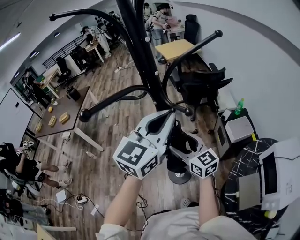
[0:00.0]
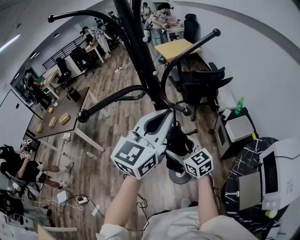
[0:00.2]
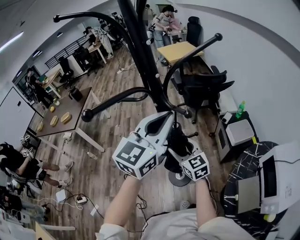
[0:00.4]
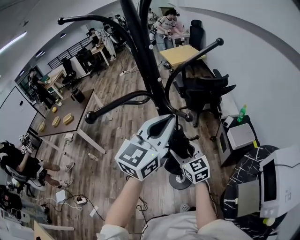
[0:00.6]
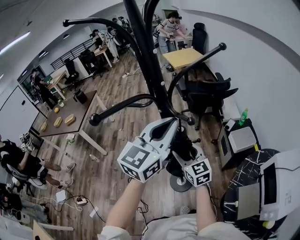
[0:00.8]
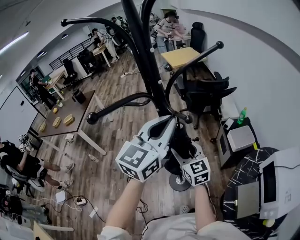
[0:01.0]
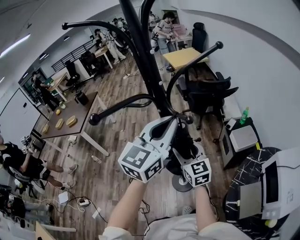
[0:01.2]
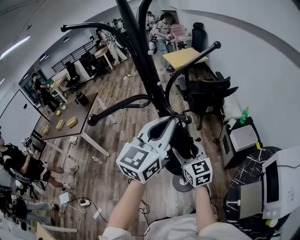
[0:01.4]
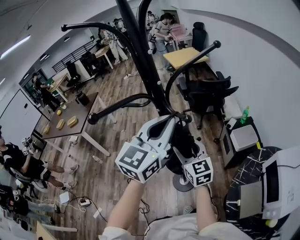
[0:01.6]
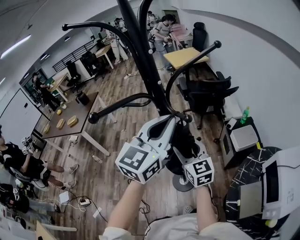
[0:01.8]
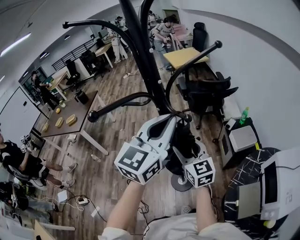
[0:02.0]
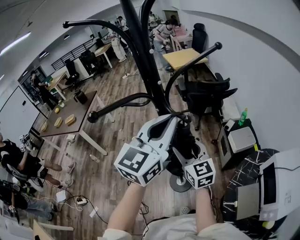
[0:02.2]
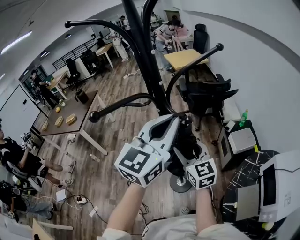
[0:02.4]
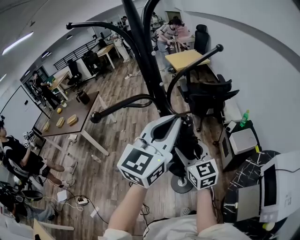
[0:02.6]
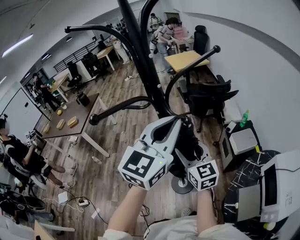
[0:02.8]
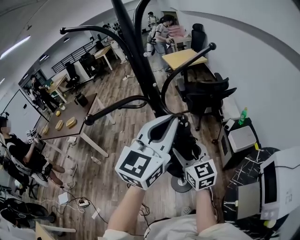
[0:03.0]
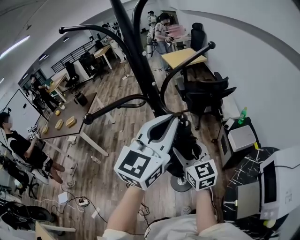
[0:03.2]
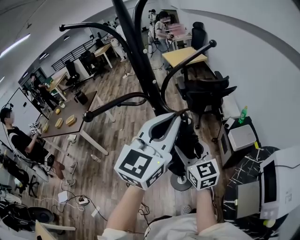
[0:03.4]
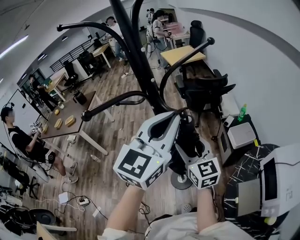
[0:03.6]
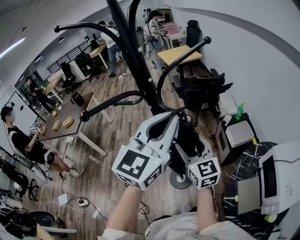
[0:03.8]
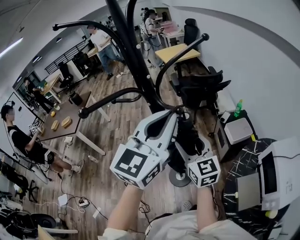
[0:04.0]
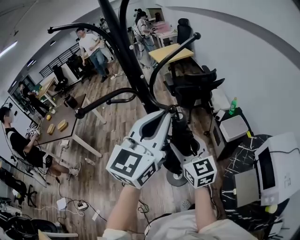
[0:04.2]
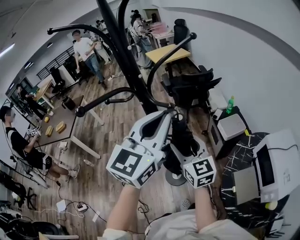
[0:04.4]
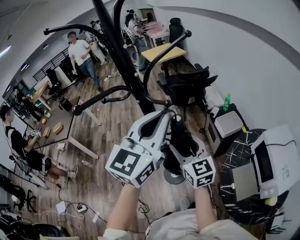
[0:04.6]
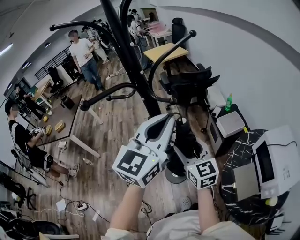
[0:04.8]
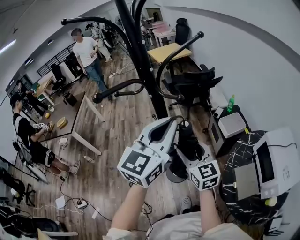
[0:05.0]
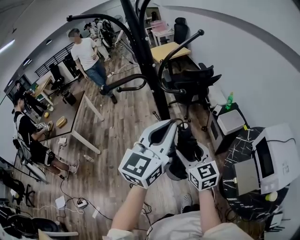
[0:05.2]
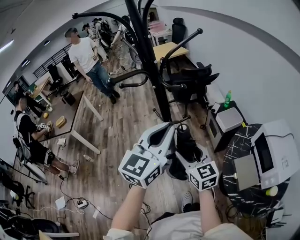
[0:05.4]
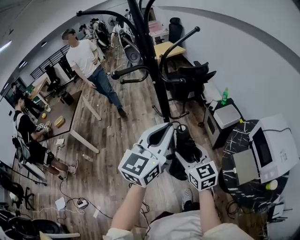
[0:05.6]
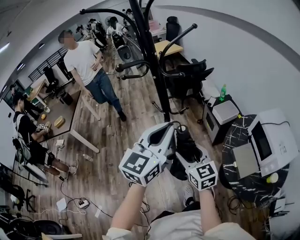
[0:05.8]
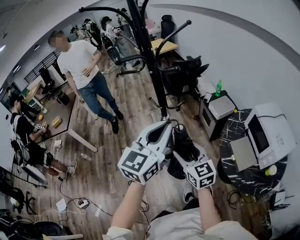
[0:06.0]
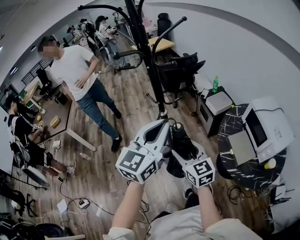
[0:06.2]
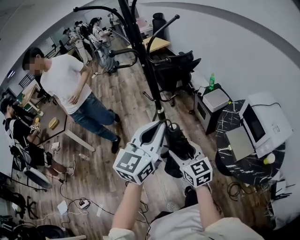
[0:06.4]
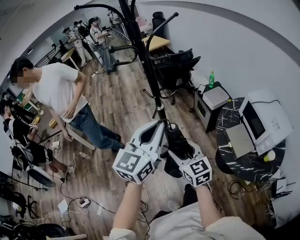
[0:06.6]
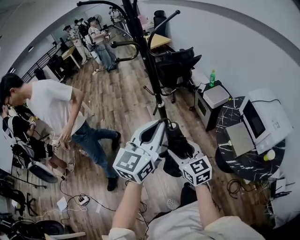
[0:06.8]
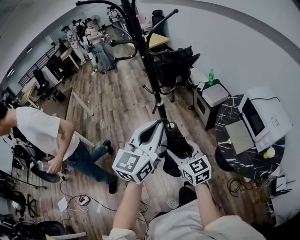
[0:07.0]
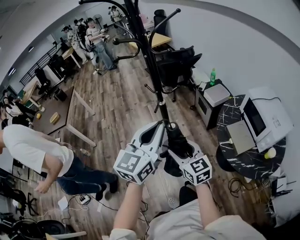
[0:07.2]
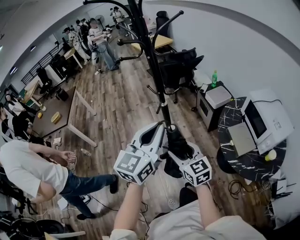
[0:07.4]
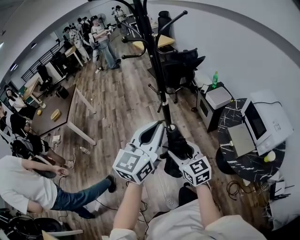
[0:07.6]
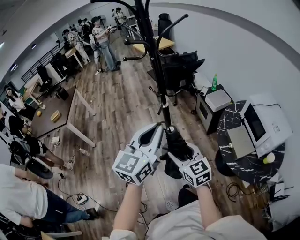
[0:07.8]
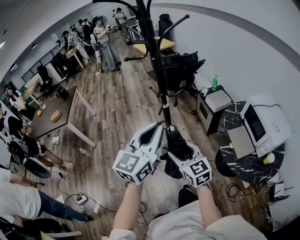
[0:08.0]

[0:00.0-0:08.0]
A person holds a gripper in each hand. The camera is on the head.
0:00.0 to 0:01.6: There are only small adjustments of the grippers.
0:01.6 to 0:03.2: The grippers make only small movements.
0:03.2 to 0:04.8: The right gripper heads backward, covering approximately 5 cm.
0:04.8 to 0:06.4: The grippers both shift backward by approximately 20 cm.
0:06.4 to 0:08.0: The right gripper moves about 5 cm; the left gripper shifts by approximately 5 cm.

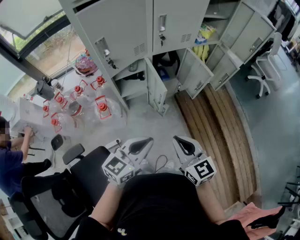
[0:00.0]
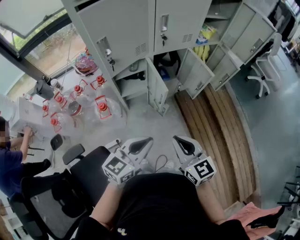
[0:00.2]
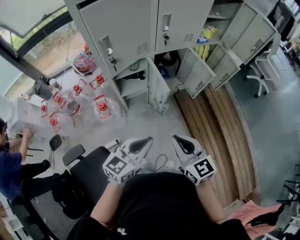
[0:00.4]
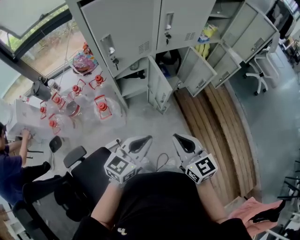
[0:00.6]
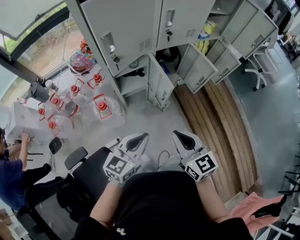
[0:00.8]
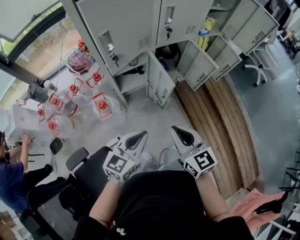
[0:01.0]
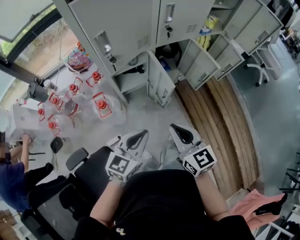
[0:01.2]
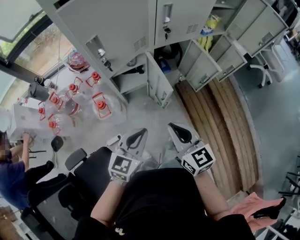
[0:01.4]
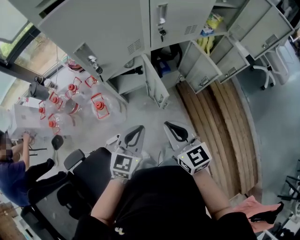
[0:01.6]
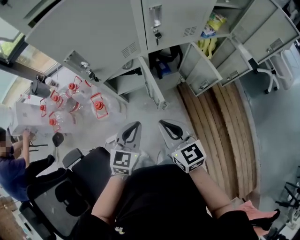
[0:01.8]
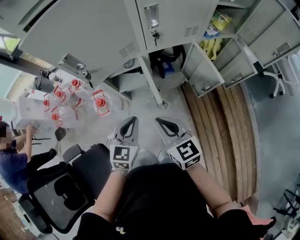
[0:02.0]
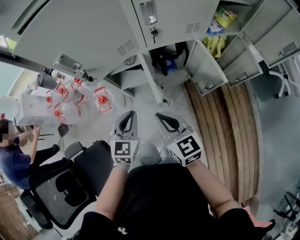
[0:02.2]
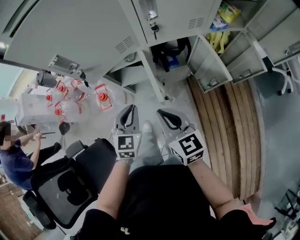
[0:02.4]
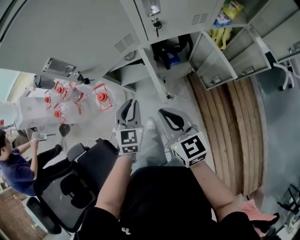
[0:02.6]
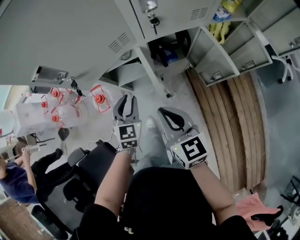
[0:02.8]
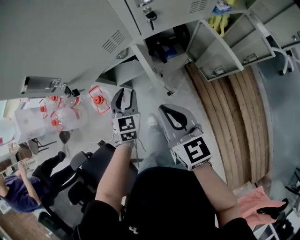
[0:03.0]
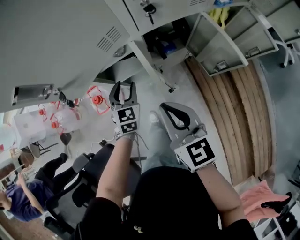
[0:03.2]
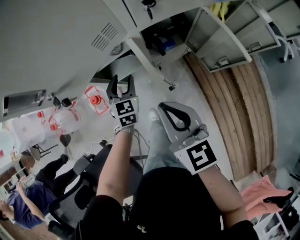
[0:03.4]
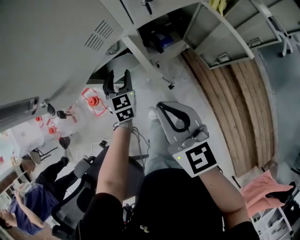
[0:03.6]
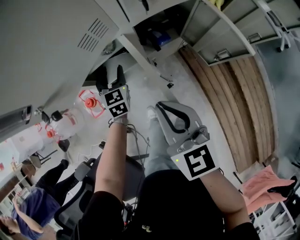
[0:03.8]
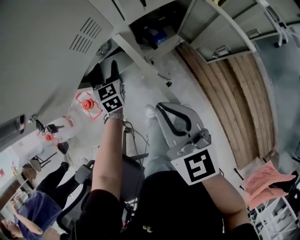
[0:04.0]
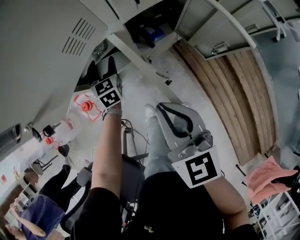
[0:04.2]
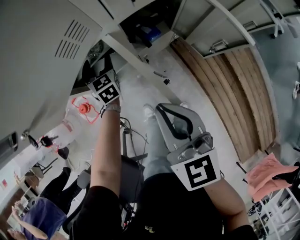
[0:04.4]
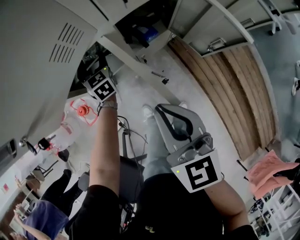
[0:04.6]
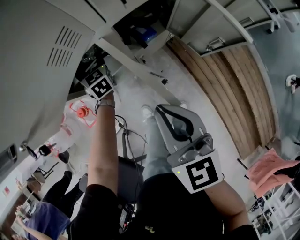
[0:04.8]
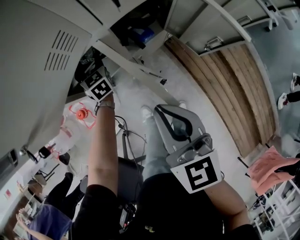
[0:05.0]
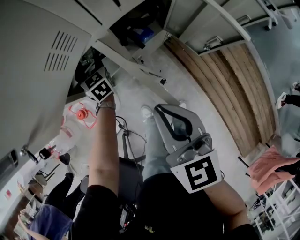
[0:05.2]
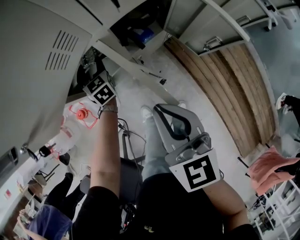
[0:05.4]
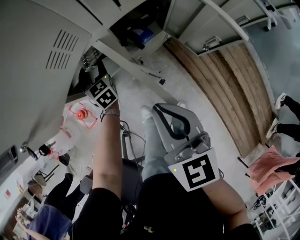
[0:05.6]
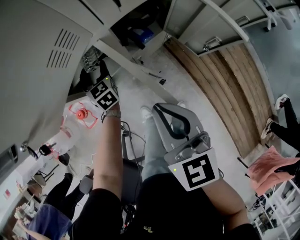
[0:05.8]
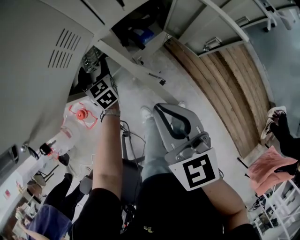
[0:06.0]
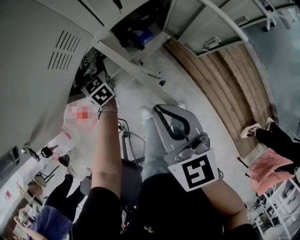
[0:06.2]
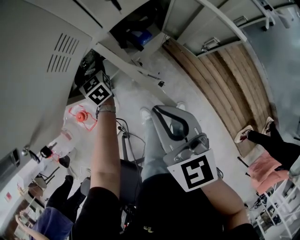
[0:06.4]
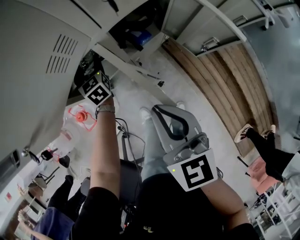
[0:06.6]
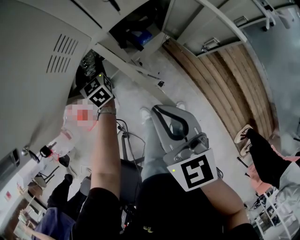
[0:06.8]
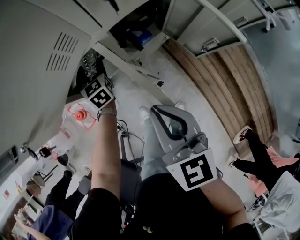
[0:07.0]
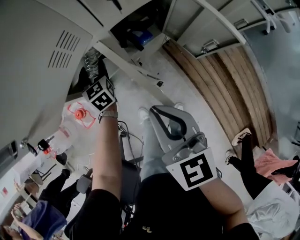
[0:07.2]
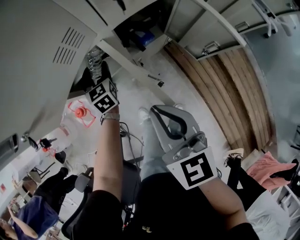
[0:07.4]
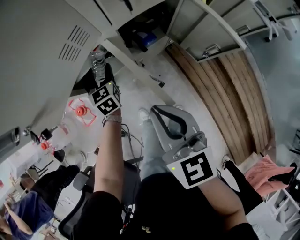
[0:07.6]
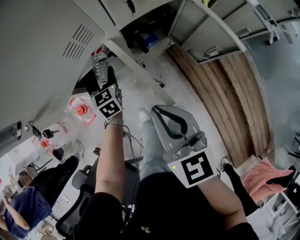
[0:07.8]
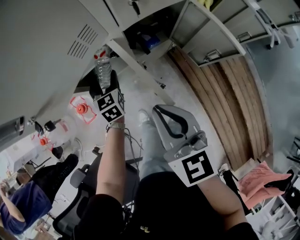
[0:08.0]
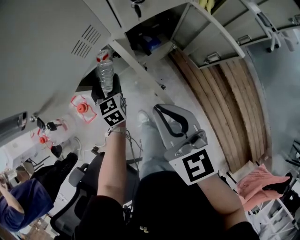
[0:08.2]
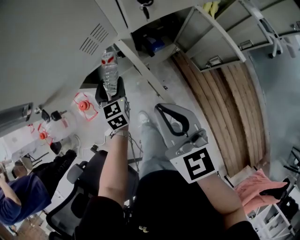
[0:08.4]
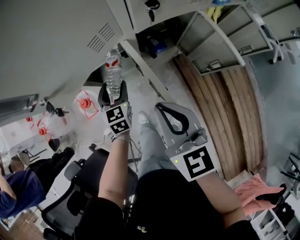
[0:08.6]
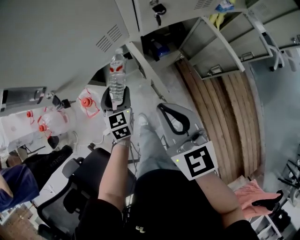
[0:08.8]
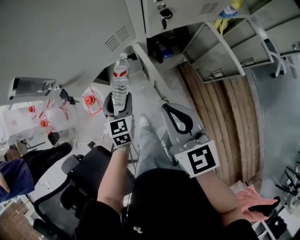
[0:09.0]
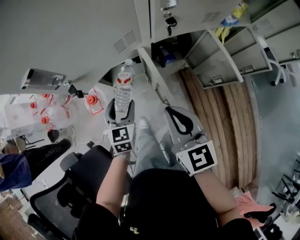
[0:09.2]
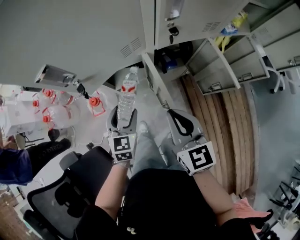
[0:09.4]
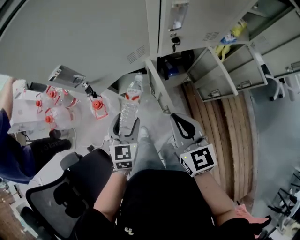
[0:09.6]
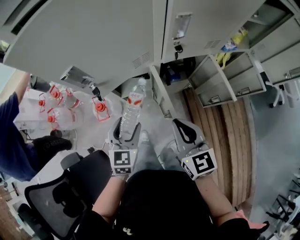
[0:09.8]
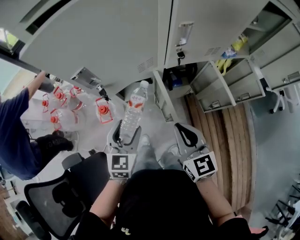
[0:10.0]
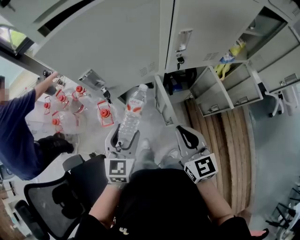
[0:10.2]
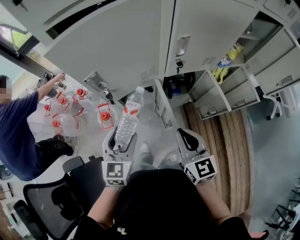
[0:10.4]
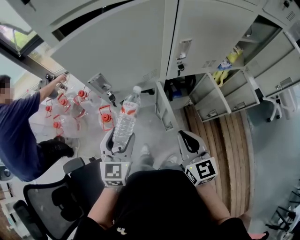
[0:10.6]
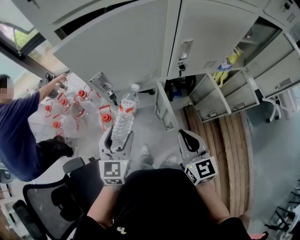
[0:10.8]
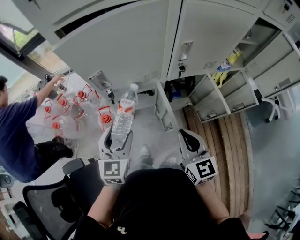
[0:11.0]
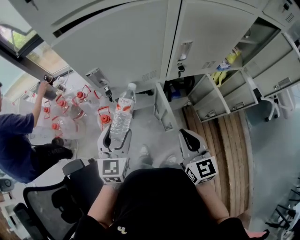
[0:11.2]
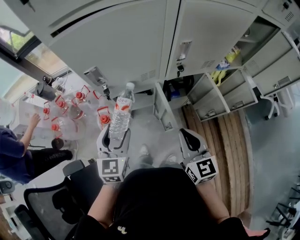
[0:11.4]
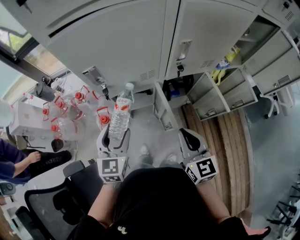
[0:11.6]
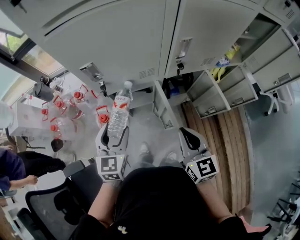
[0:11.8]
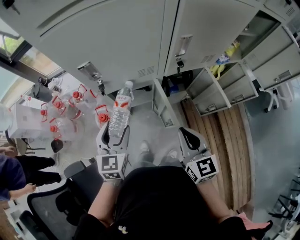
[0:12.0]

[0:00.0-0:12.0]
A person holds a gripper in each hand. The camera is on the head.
0:00.0 to 0:01.6: The right gripper shifts approximately 15 cm forward and to the left; the left gripper travels forward and downward by roughly 15 cm, and turns by about 20 degrees.
0:01.6 to 0:03.0: The right gripper heads forward and downward, covering some 15 cm, while the left gripper goes roughly 25 cm forward and downward, turns by roughly 30 degrees, and opens up.
0:03.0 to 0:04.4: The left gripper is displaced forward and downward by approximately 20 cm, and opens.
0:04.4 to 0:07.6: The grippers make only small movements.
0:07.6 to 0:09.0: The left gripper goes approximately 15 cm backward and upward.
0:09.0 to 0:10.4: The left gripper goes about 25 cm upward and backward, while the right gripper travels upward by approximately 5 cm.
0:10.4 to 0:12.0: The left gripper changes place by about 5 cm.

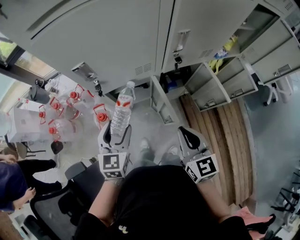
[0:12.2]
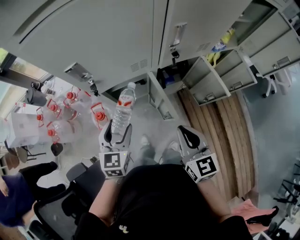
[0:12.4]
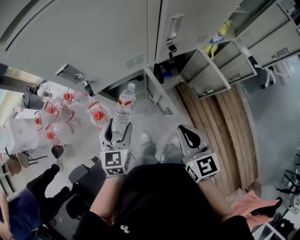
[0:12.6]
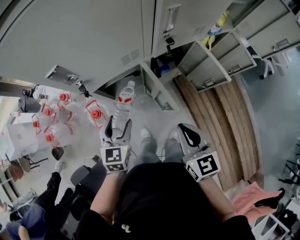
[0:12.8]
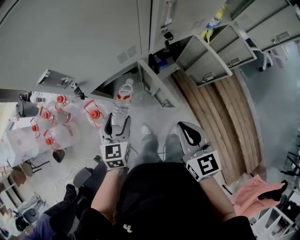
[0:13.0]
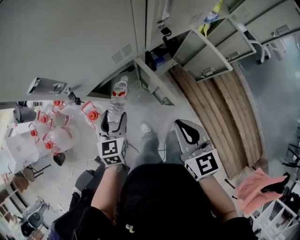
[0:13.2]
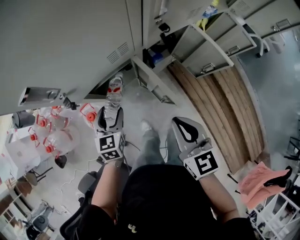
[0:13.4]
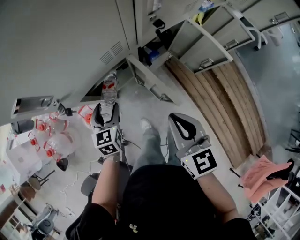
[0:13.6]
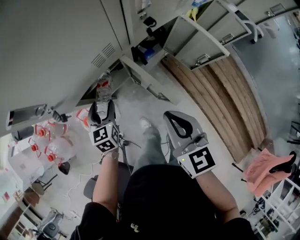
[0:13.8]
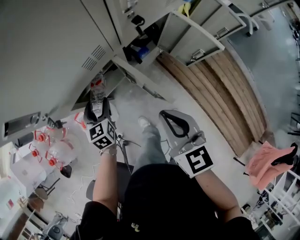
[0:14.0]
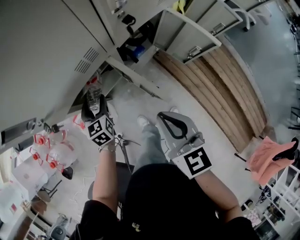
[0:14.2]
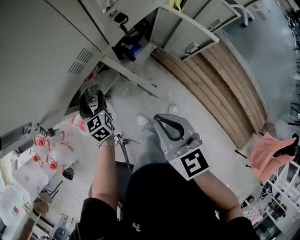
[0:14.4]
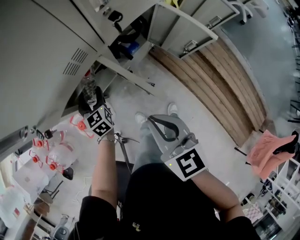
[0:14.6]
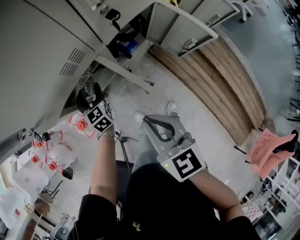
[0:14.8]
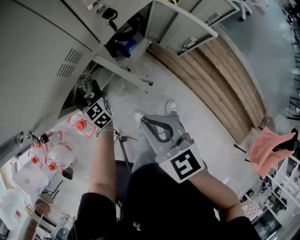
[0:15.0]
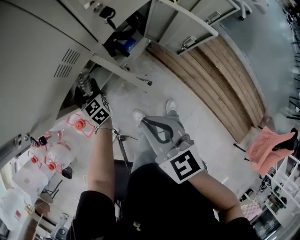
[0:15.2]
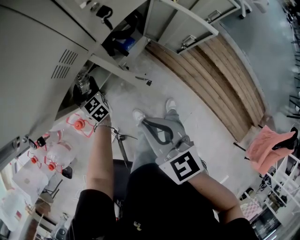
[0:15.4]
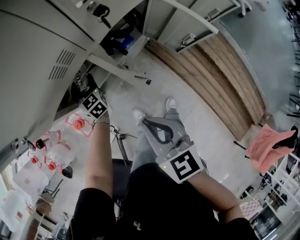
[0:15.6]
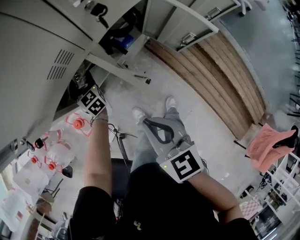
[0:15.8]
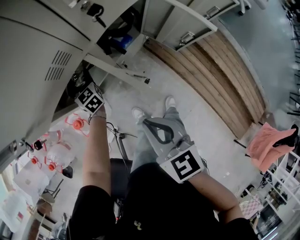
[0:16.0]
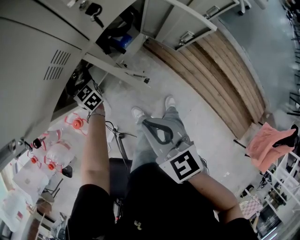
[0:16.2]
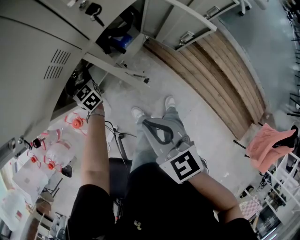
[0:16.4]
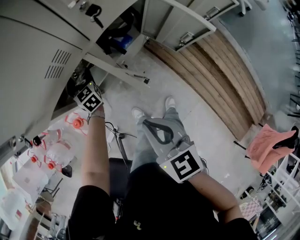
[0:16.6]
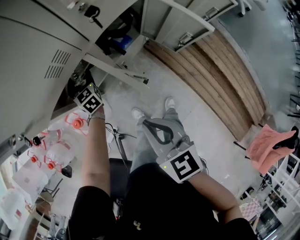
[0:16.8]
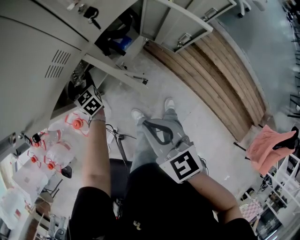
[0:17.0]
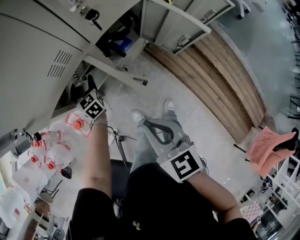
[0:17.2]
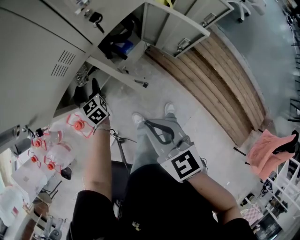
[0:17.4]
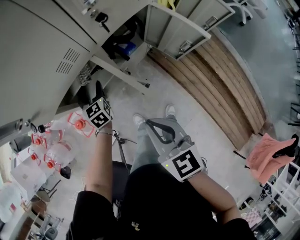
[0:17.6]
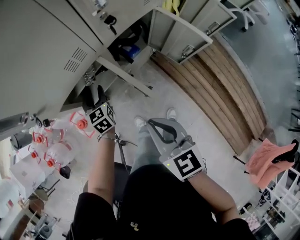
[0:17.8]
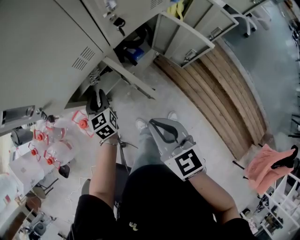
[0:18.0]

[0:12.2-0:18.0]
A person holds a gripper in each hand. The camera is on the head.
0:12.2 to 0:13.6: The left gripper heads downward and forward, covering about 20 cm. The right gripper travels downward by approximately 5 cm.
0:13.6 to 0:15.0: The left gripper is displaced forward and downward by some 15 cm.
0:15.0 to 0:16.6: The left gripper is displaced forward by approximately 5 cm.
0:16.6 to 0:18.0: The left gripper travels backward and upward by roughly 15 cm, and closes up.
